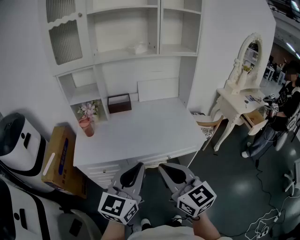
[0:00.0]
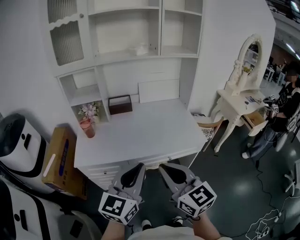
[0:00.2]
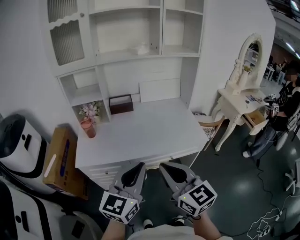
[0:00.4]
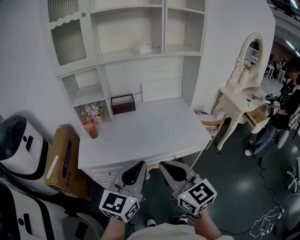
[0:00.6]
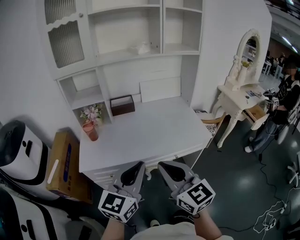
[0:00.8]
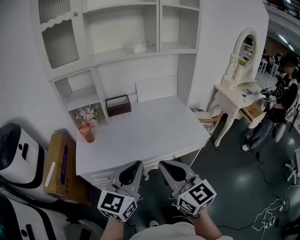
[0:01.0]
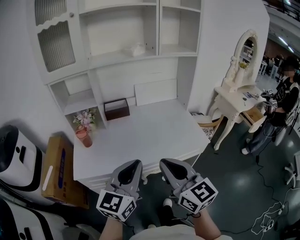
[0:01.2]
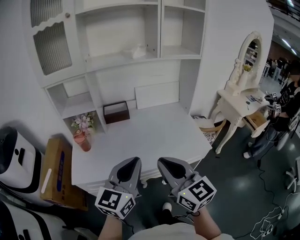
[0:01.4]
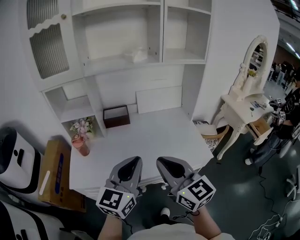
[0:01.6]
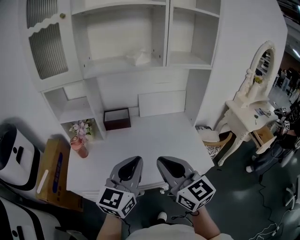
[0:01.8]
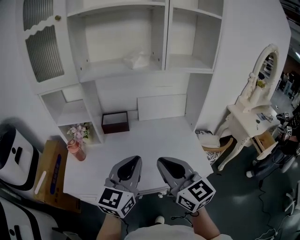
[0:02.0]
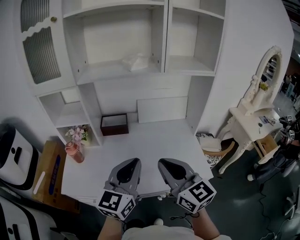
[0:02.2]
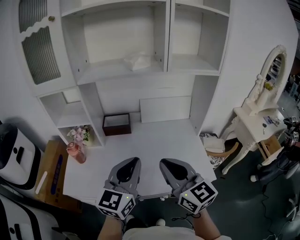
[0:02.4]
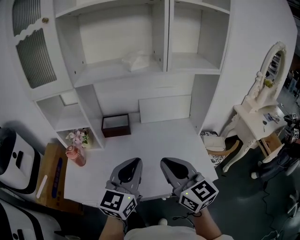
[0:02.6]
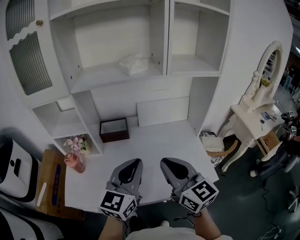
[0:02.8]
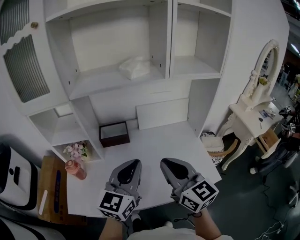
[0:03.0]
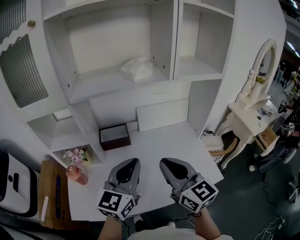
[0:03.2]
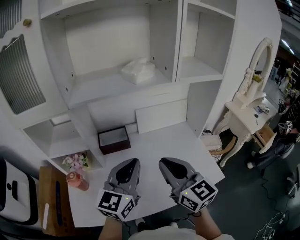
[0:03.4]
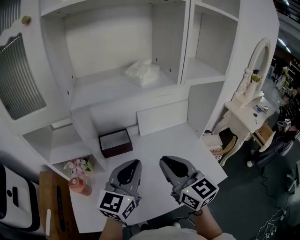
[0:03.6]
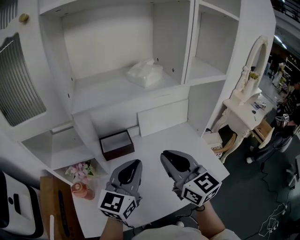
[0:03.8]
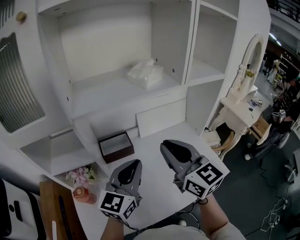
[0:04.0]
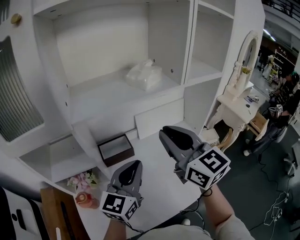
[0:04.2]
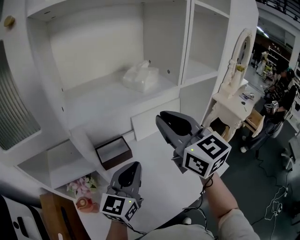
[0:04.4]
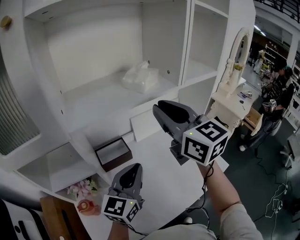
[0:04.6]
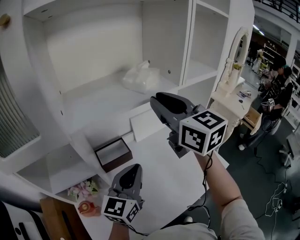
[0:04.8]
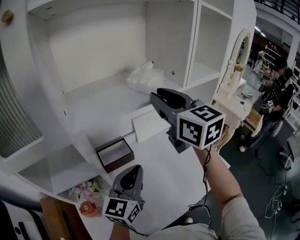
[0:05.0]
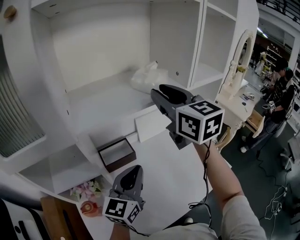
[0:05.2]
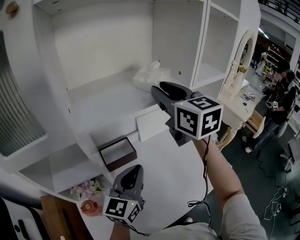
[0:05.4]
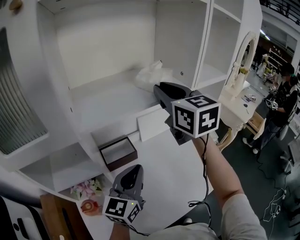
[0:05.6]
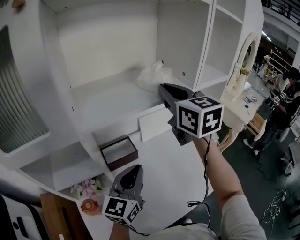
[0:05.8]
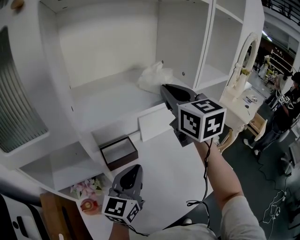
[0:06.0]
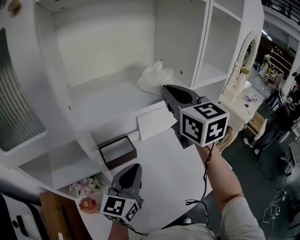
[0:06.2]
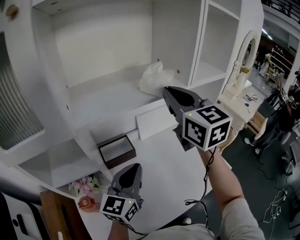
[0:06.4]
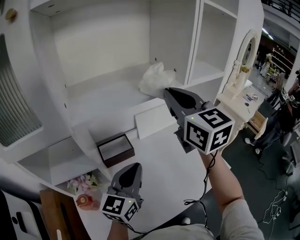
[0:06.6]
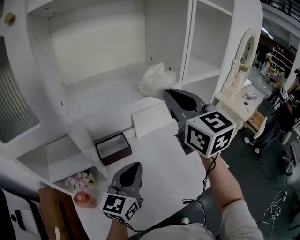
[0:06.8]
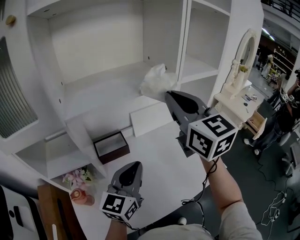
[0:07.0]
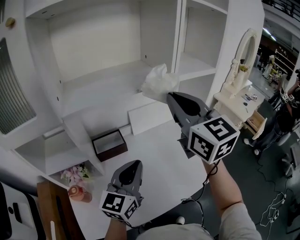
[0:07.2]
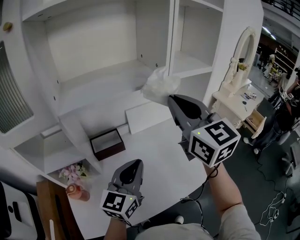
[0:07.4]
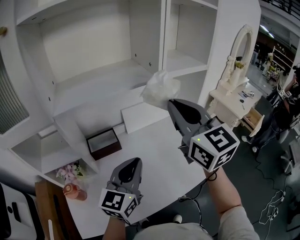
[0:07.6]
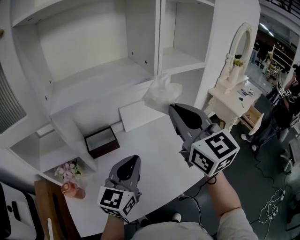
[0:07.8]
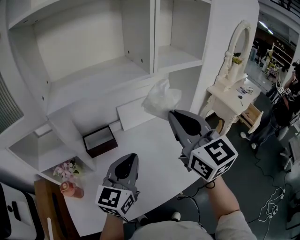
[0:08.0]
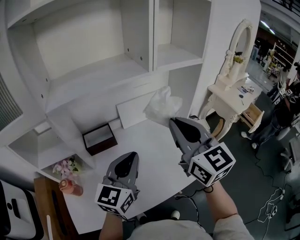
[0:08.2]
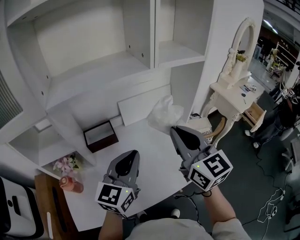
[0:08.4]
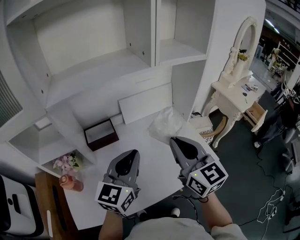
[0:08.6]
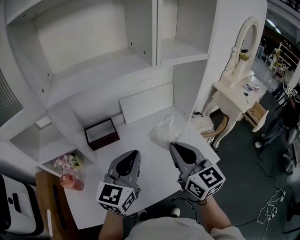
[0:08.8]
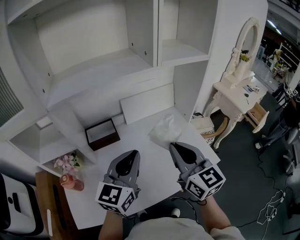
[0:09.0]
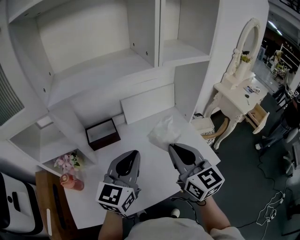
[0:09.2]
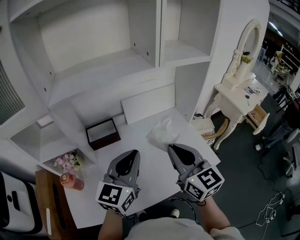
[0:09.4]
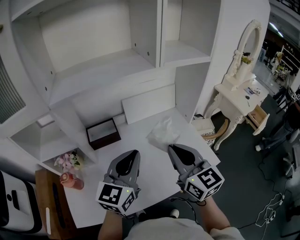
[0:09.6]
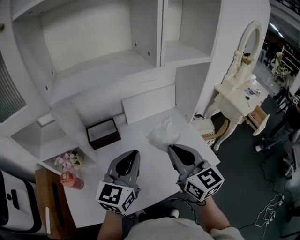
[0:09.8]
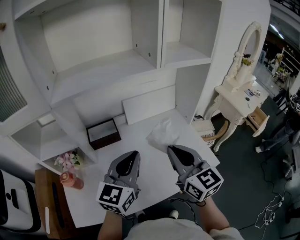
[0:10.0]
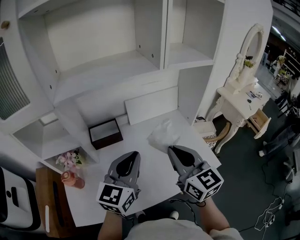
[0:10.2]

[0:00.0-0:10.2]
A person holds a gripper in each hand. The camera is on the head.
0.0 to 1.4 s: Both grippers move forward, some 15 cm.
1.4 to 3.0 s: Both grippers travel together forward, roughly 25 cm.
3.0 to 4.4 s: The right gripper moves forward, upward and to the left, about 25 cm. The left gripper heads to the left and forward, covering roughly 15 cm.
4.4 to 5.8 s: The right gripper moves forward, some 10 cm.
5.8 to 7.2 s: The left gripper goes some 10 cm to the right. Meanwhile the right gripper goes some 15 cm backward and to the right.
7.2 to 8.8 s: The right gripper is displaced downward, backward and to the right by roughly 20 cm; the left gripper shifts roughly 5 cm to the right.
8.8 to 10.2 s: The grippers stay close to where they were, moving slightly.

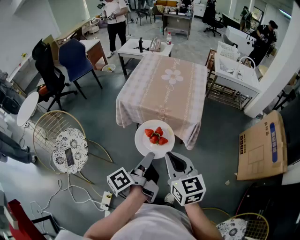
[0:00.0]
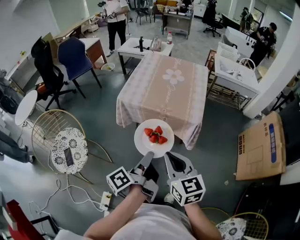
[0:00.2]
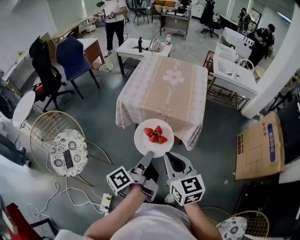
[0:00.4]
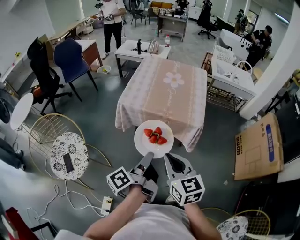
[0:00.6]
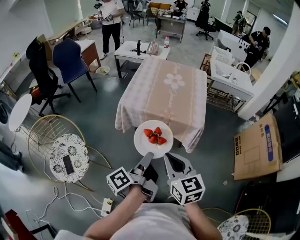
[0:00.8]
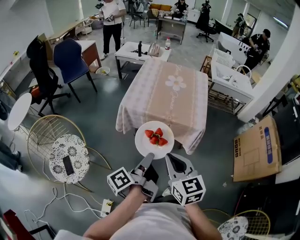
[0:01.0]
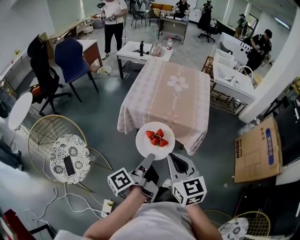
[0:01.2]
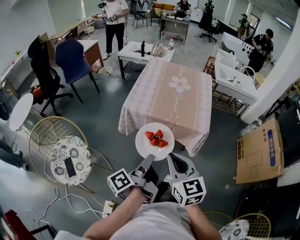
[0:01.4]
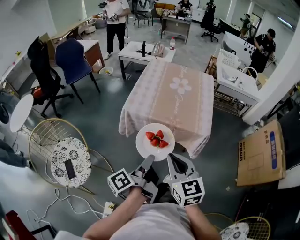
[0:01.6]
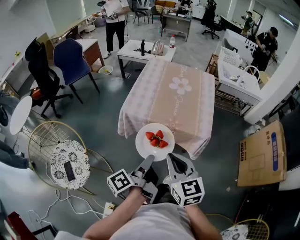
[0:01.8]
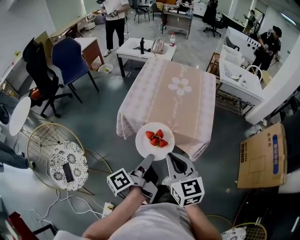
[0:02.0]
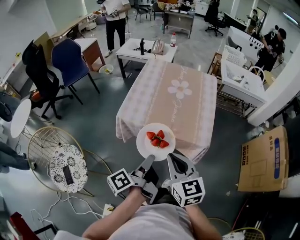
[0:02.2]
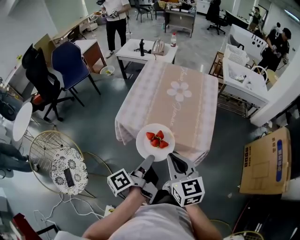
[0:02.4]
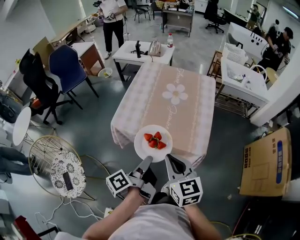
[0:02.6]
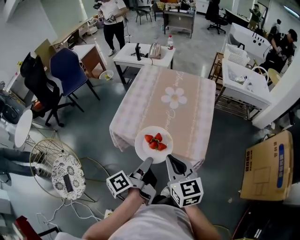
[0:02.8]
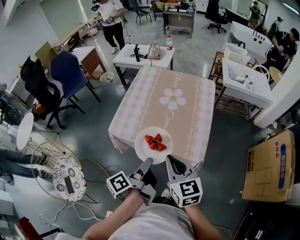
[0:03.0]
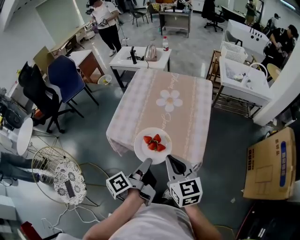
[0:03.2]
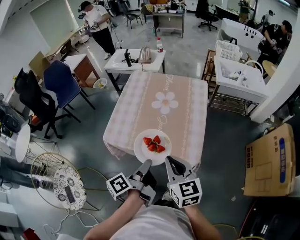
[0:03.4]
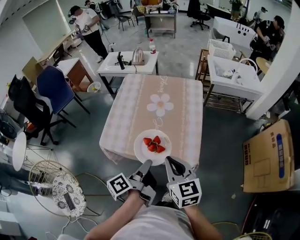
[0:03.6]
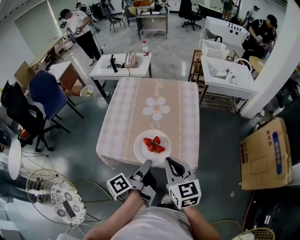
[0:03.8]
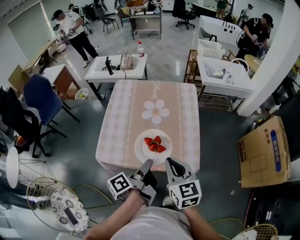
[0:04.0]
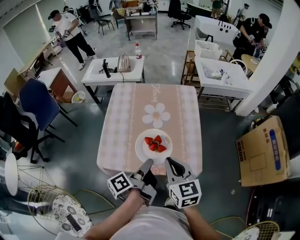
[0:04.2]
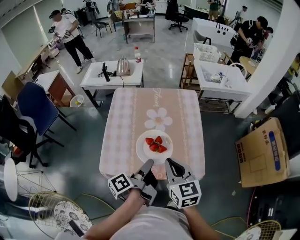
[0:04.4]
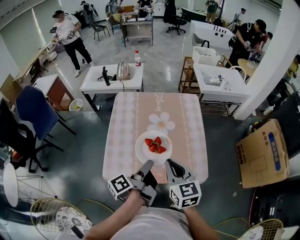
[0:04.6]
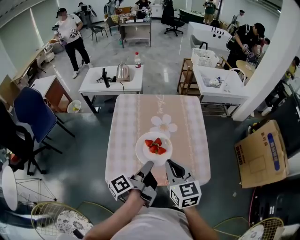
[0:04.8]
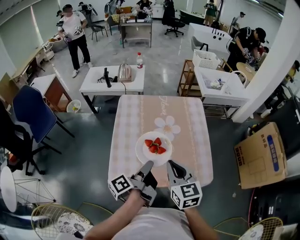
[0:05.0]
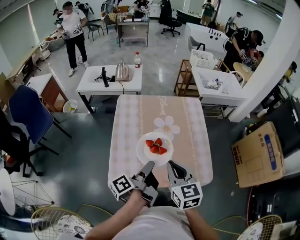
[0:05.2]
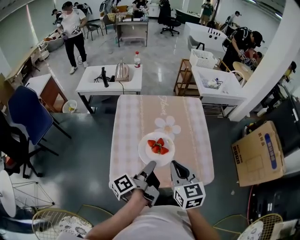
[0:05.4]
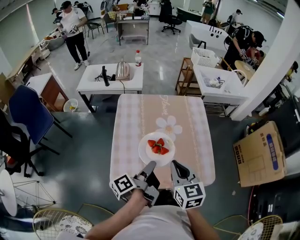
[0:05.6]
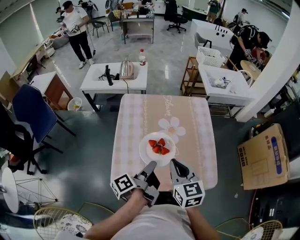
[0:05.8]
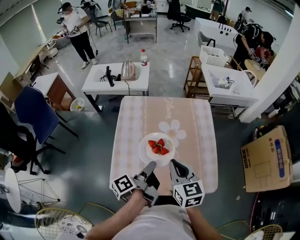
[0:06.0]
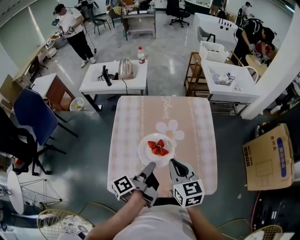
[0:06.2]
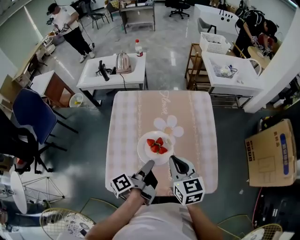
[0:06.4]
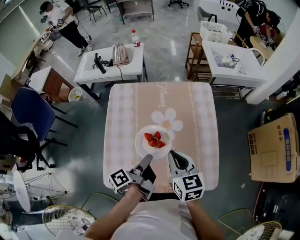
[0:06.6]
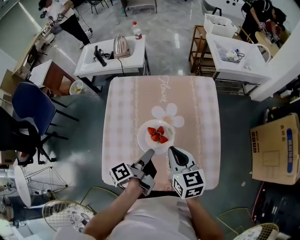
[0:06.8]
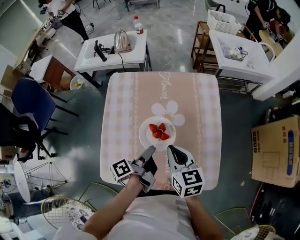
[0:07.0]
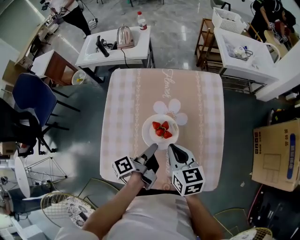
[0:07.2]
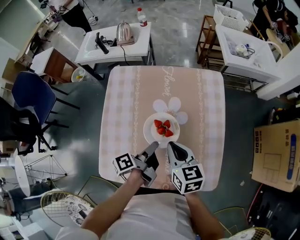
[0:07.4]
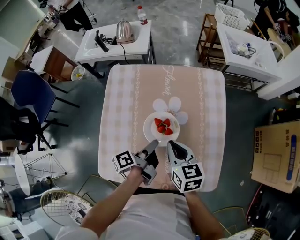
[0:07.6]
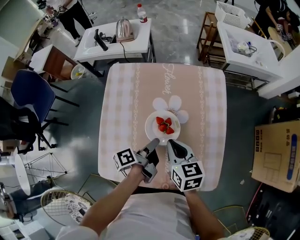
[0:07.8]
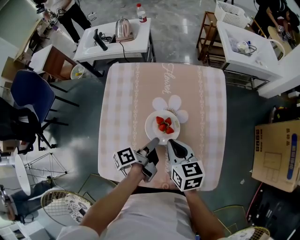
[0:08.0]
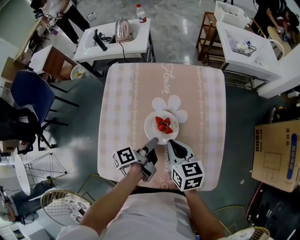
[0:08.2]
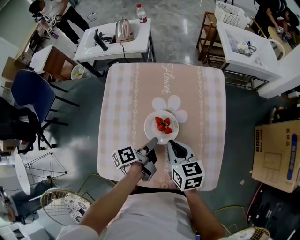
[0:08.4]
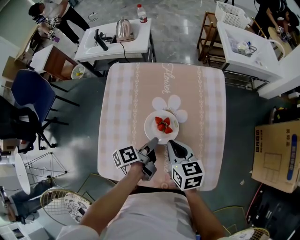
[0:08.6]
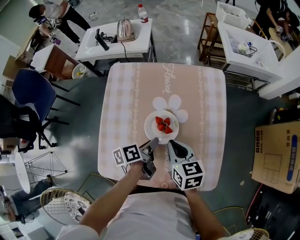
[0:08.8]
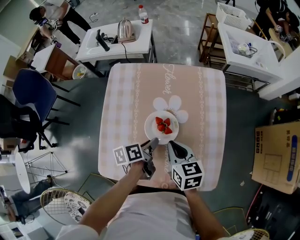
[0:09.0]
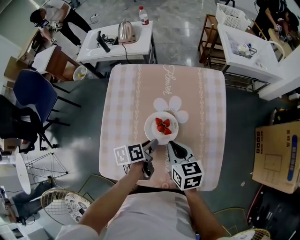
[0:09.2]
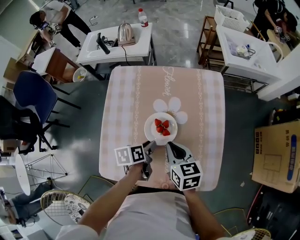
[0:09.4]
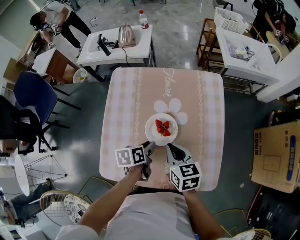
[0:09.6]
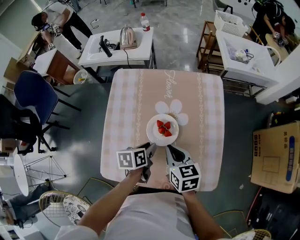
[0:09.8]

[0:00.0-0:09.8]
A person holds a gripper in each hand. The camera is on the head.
0.0 to 1.4 s: The right gripper changes place by approximately 10 cm.
1.4 to 2.8 s: The right gripper moves about 25 cm.
2.8 to 4.2 s: The right gripper shifts by approximately 15 cm.
4.2 to 5.6 s: The right gripper moves roughly 10 cm.
5.6 to 7.0 s: The right gripper moves roughly 15 cm.

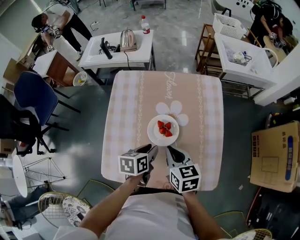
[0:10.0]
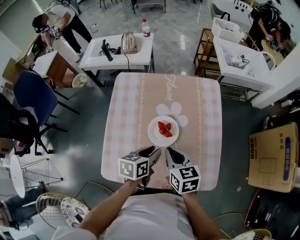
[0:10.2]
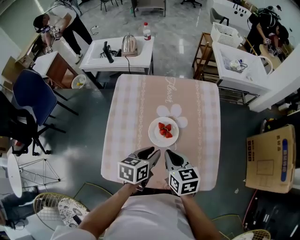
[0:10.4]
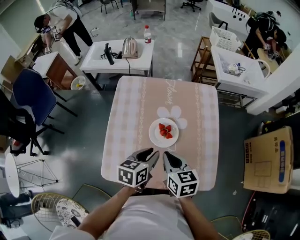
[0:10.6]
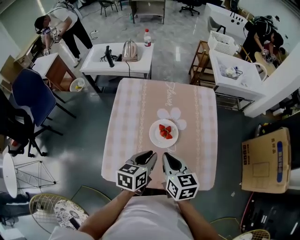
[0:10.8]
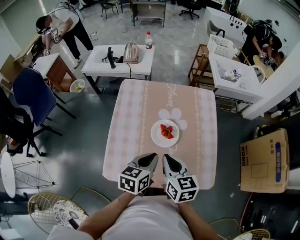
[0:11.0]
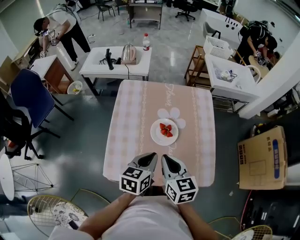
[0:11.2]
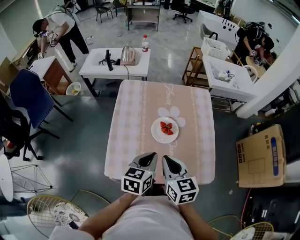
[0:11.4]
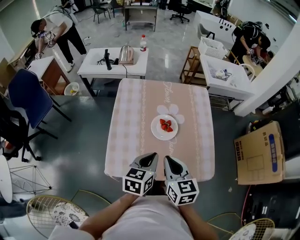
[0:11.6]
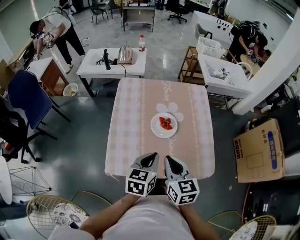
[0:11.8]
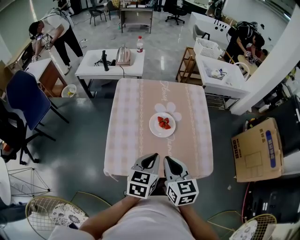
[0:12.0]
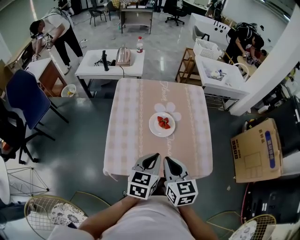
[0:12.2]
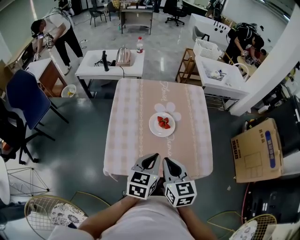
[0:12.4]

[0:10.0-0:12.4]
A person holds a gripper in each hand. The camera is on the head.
10.0 to 11.2 s: The right gripper shifts by about 10 cm.
11.2 to 12.4 s: The right gripper ends up approximately 5 cm from where it was.

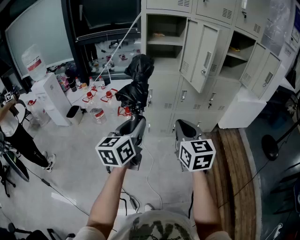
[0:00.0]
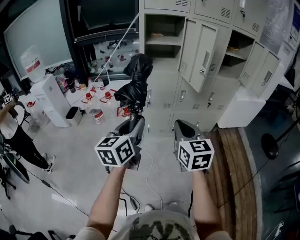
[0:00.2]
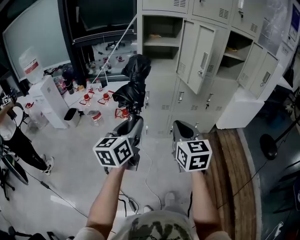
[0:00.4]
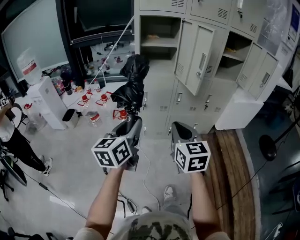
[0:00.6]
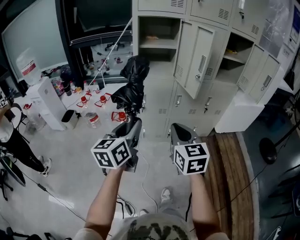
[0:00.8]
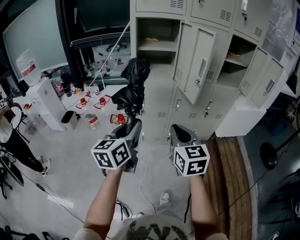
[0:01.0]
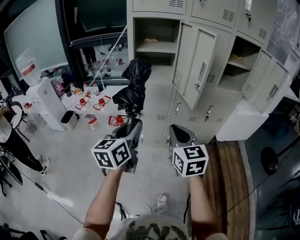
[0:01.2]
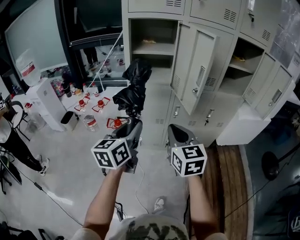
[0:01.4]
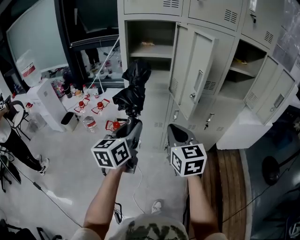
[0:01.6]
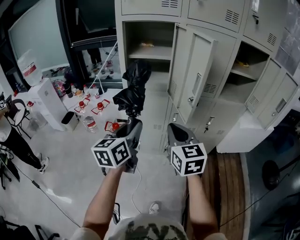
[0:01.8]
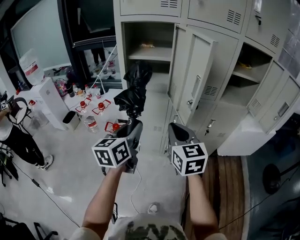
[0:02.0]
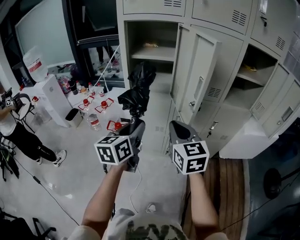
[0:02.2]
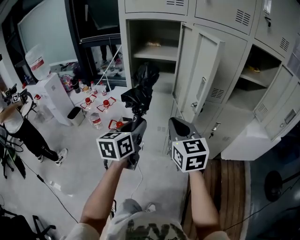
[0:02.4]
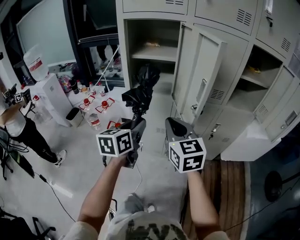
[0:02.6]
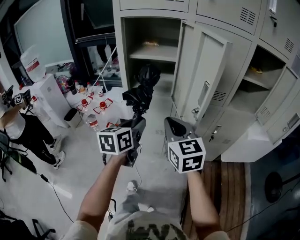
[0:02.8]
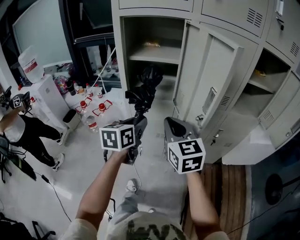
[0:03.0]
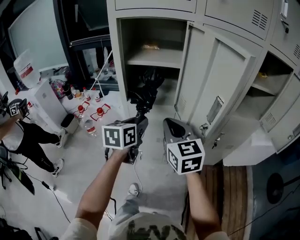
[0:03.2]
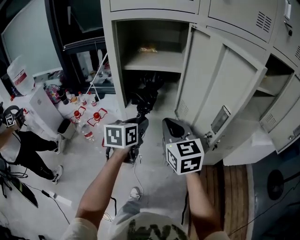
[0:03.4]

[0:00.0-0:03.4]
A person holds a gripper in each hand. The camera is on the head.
0.0 to 1.6 s: The grippers both shift forward and to the right by roughly 20 cm.
1.6 to 3.4 s: Both grippers move forward, about 20 cm.
